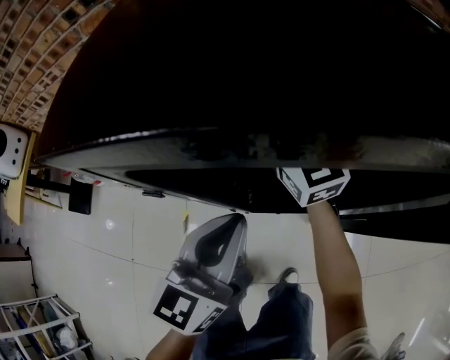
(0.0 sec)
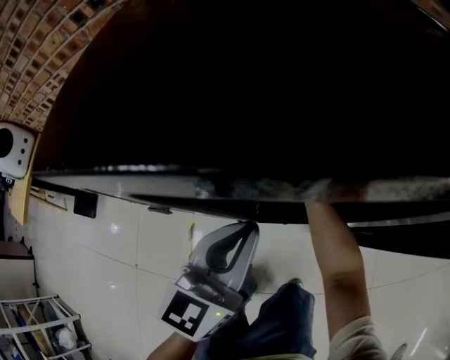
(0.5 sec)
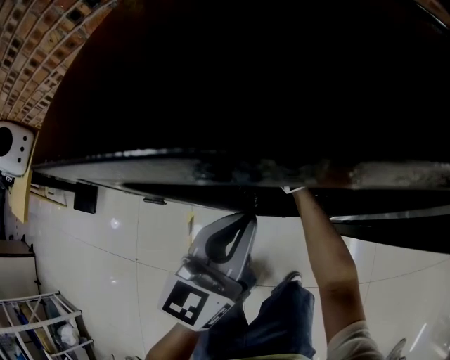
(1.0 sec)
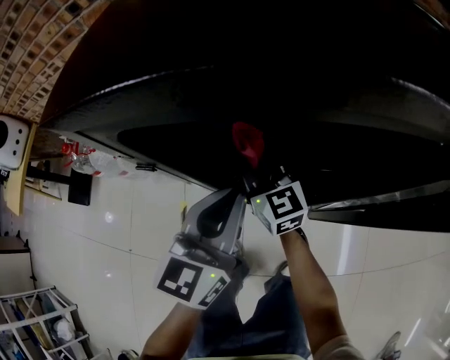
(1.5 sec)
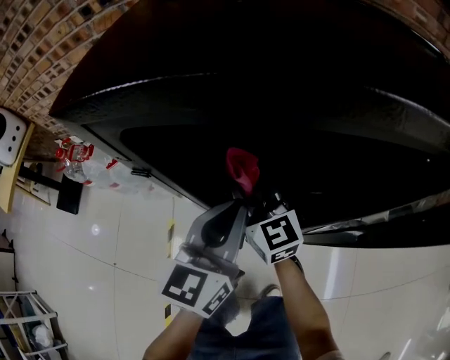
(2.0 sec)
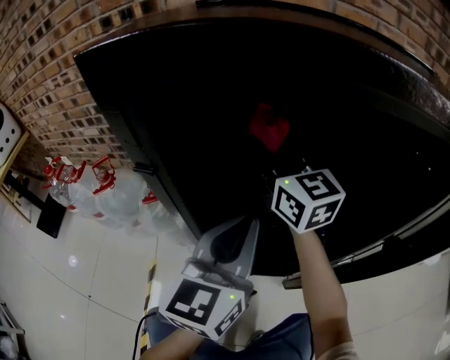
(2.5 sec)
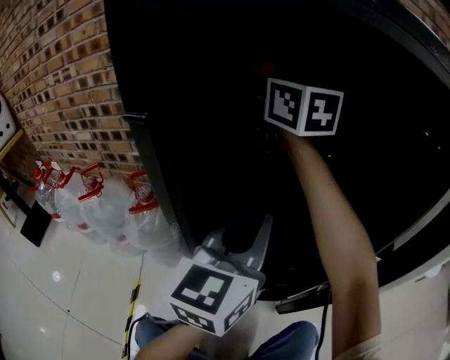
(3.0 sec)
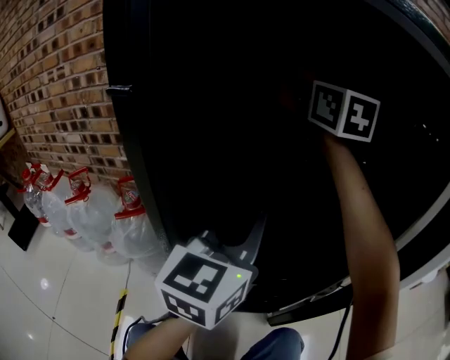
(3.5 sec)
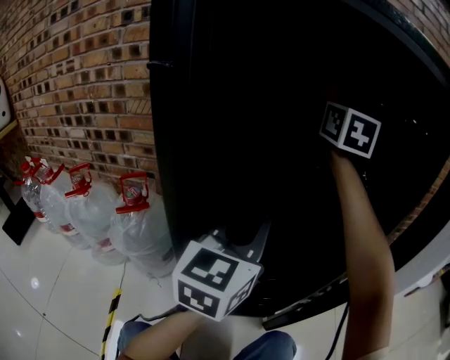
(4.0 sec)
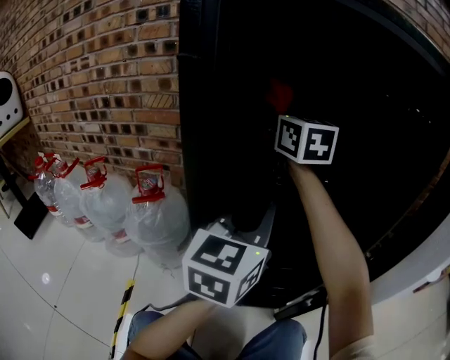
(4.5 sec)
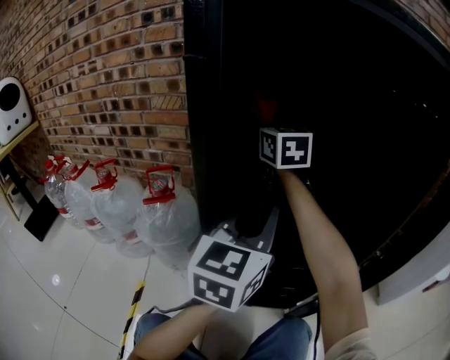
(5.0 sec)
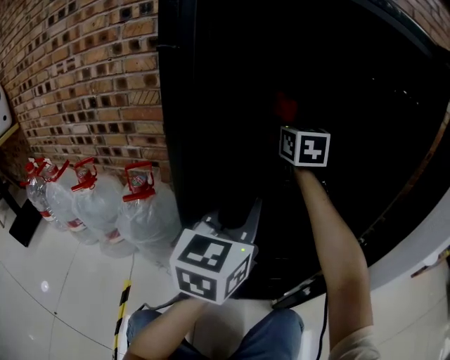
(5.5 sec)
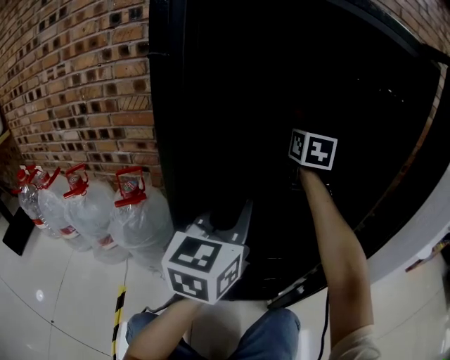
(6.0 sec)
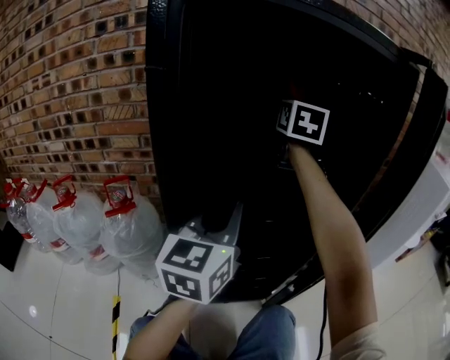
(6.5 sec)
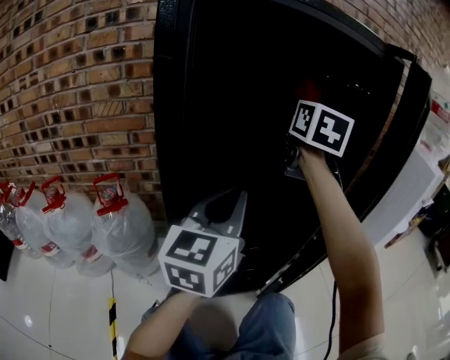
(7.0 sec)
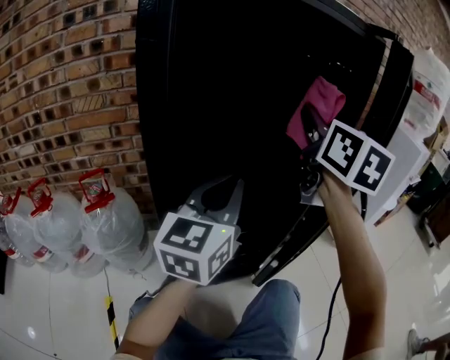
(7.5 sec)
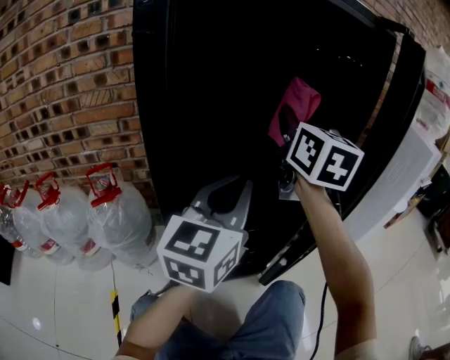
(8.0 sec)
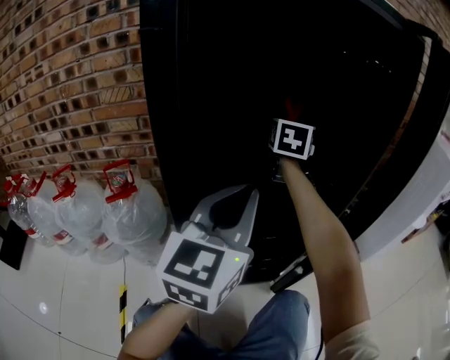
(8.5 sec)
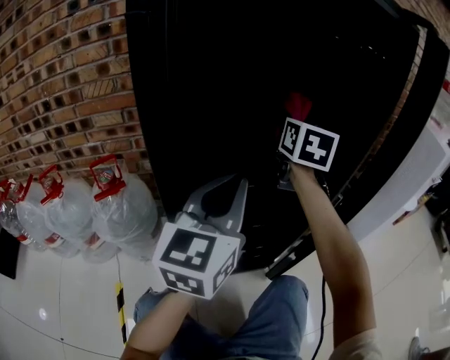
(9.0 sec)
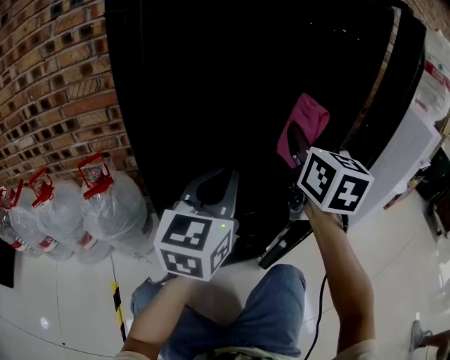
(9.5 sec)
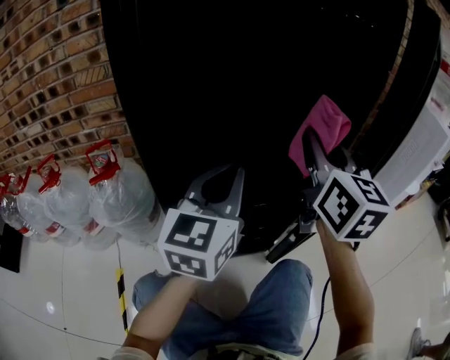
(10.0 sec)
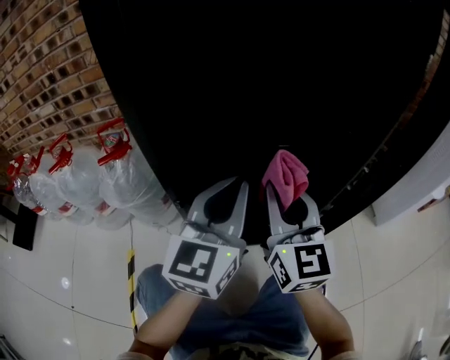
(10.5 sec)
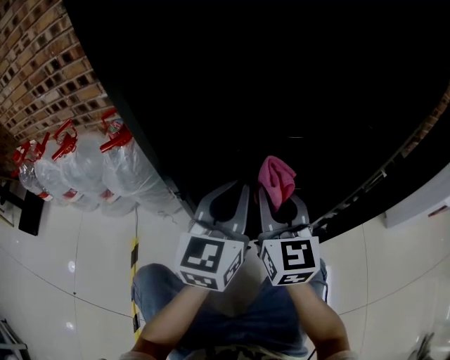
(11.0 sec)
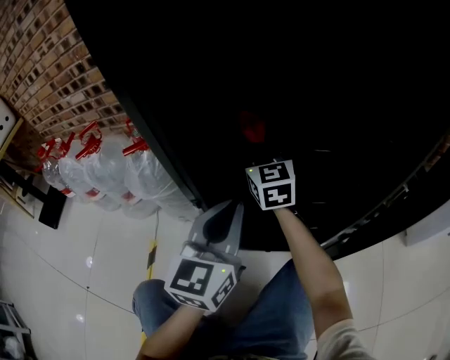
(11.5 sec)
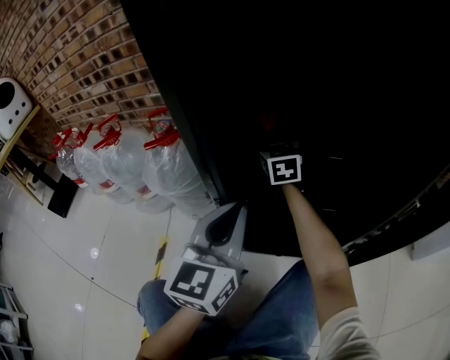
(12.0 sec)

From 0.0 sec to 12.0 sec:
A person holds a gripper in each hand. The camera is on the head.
From 0.0 sec to 2.0 sec: The right gripper travels backward and downward by about 15 cm.
From 2.0 sec to 4.0 sec: The left gripper heads downward, to the right and forward, covering some 10 cm, while the right gripper moves forward, to the right and upward, roughly 30 cm, and swivels about 40 degrees.
From 4.0 sec to 6.0 sec: The right gripper is displaced downward by roughly 15 cm, and travels to the left and back again, approximately 20 cm each way.
From 6.0 sec to 8.0 sec: The left gripper ends up approximately 5 cm from where it was. The right gripper moves backward, roughly 15 cm.
From 8.0 sec to 10.0 sec: The right gripper goes some 10 cm downward and to the right, and moves approximately 15 cm forward and comes back. The left gripper moves downward, some 5 cm.
From 10.0 sec to 12.0 sec: The right gripper moves approximately 40 cm, and changes its angle by some 30 degrees. The left gripper travels downward by approximately 10 cm, and turns by approximately 20 degrees.

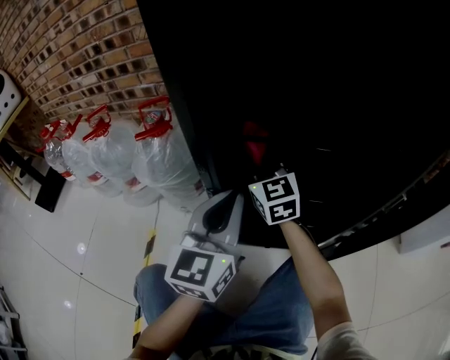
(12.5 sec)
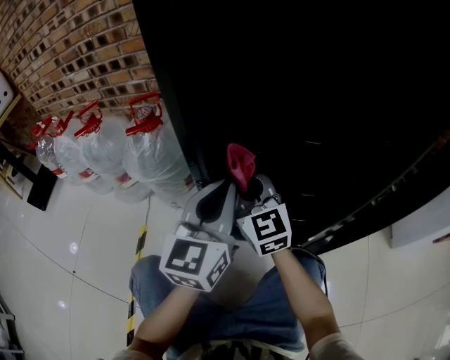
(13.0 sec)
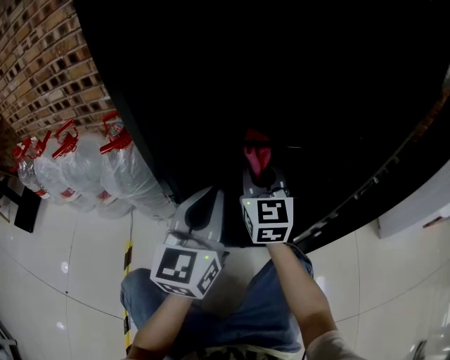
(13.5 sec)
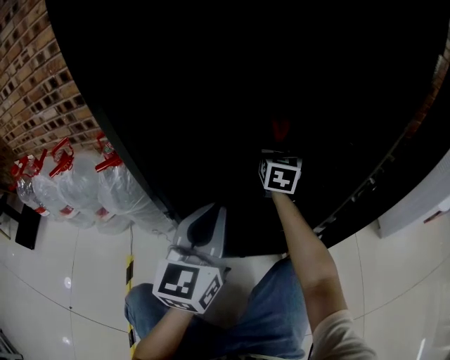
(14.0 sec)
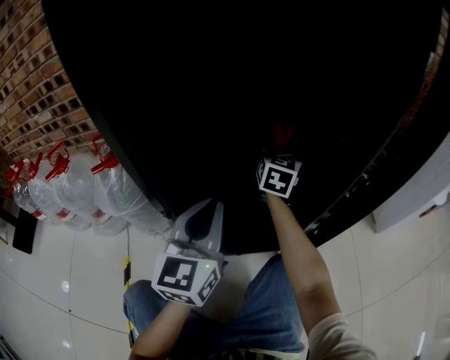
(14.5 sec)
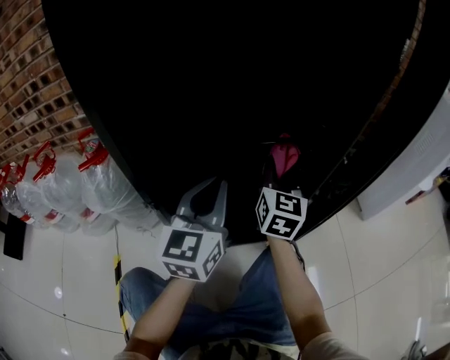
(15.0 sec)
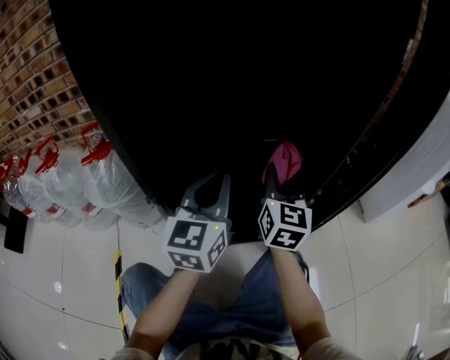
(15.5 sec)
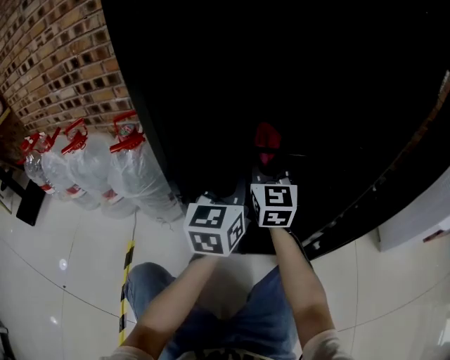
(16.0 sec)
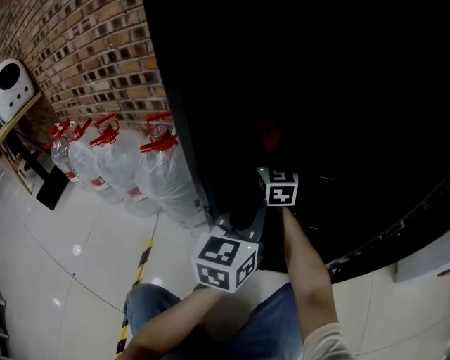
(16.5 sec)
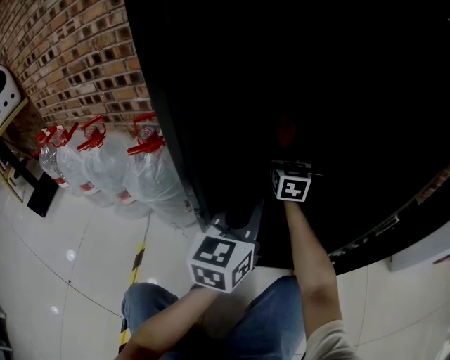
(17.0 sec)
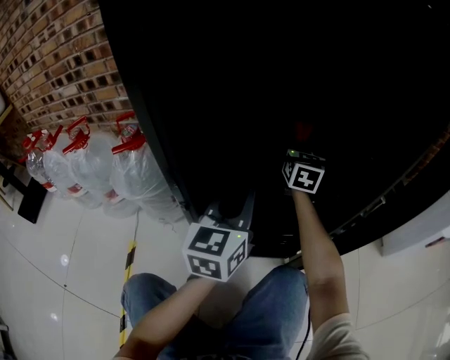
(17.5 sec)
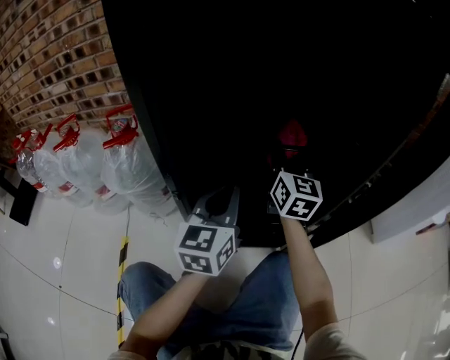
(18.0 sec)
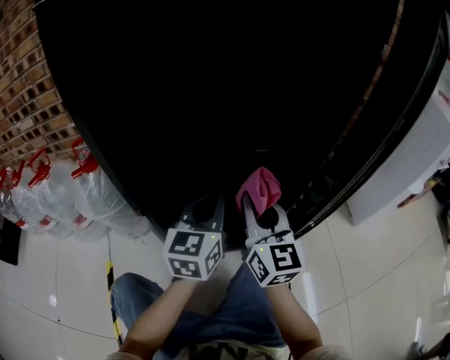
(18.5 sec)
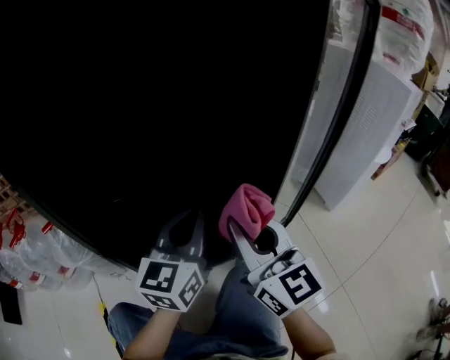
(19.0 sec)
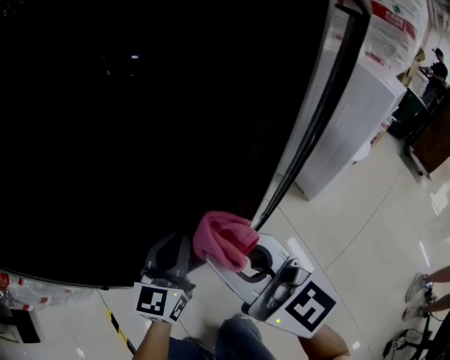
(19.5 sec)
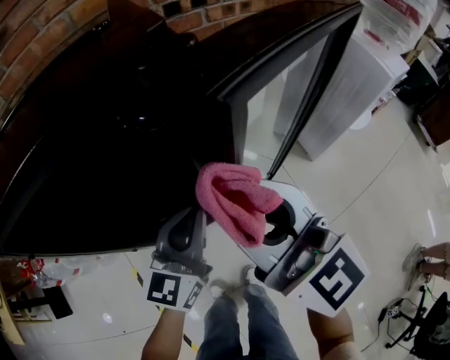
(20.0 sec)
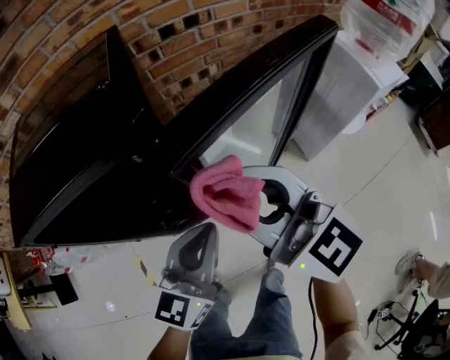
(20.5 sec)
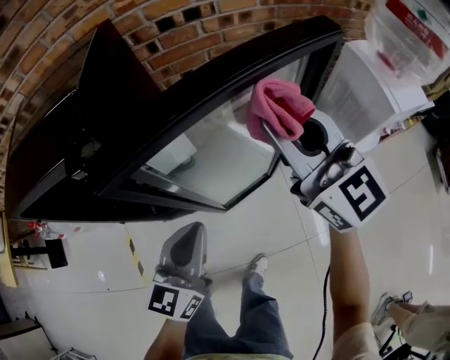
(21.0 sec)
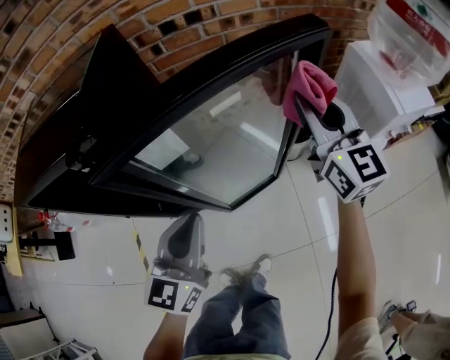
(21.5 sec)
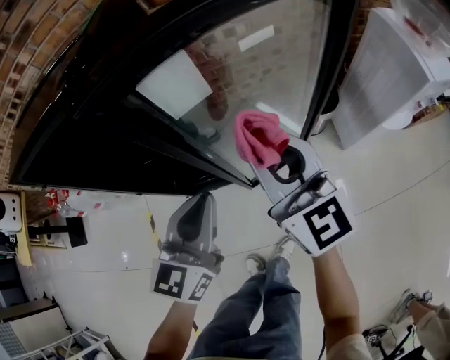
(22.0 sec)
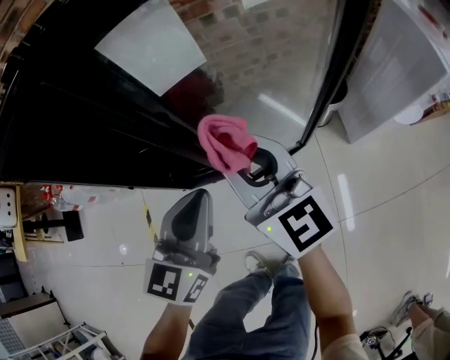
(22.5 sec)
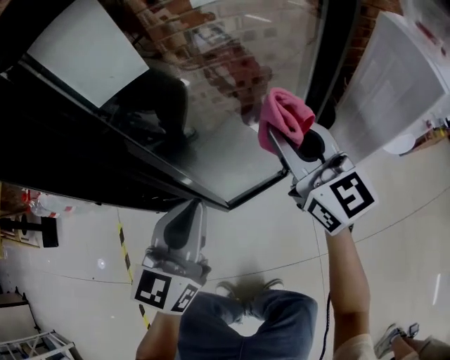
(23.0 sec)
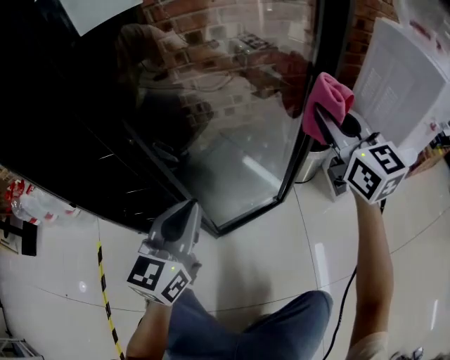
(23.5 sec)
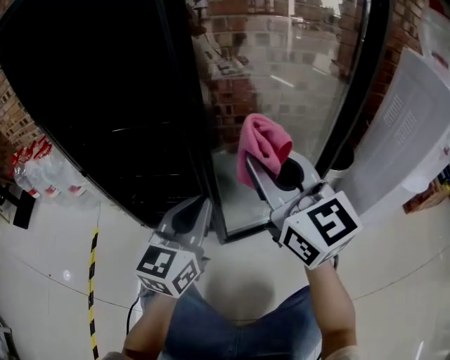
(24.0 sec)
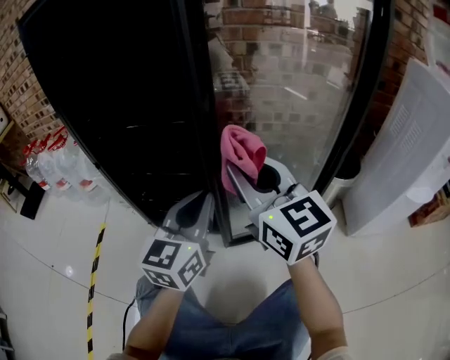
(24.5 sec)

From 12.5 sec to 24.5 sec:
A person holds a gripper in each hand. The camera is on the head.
From 12.5 sec to 14.5 sec: The left gripper ends up approximately 5 cm from where it was, while the right gripper shifts by roughly 25 cm, and rotates roughly 50 degrees.
From 14.5 sec to 16.5 sec: The right gripper moves to the left, approximately 20 cm, and swivels roughly 40 degrees.
From 16.5 sec to 18.5 sec: The left gripper moves to the right, roughly 10 cm, while the right gripper shifts some 30 cm backward and to the right.
From 18.5 sec to 20.5 sec: The right gripper is displaced upward by approximately 40 cm, and changes its angle by roughly 20 degrees, while the left gripper moves upward and to the right, approximately 40 cm, and turns by some 20 degrees.
From 20.5 sec to 22.5 sec: The left gripper travels downward by approximately 10 cm, and swivels approximately 20 degrees. The right gripper is displaced downward by approximately 15 cm, and moves approximately 25 cm to the right and comes back.
From 22.5 sec to 24.5 sec: Both grippers travel together downward, roughly 20 cm. The right gripper travels to the right and back again, approximately 25 cm each way.

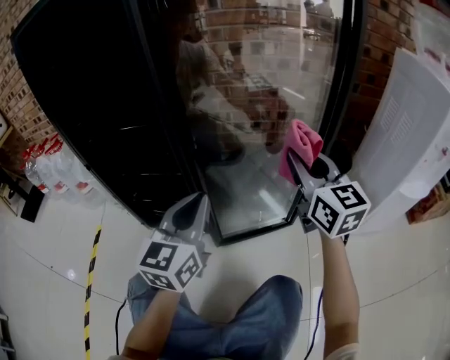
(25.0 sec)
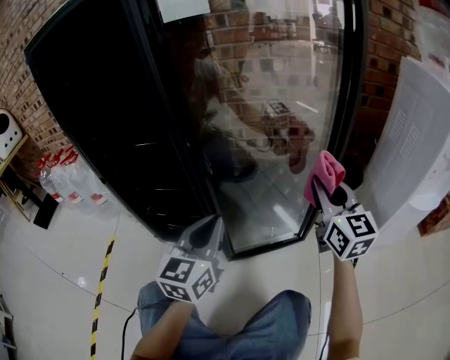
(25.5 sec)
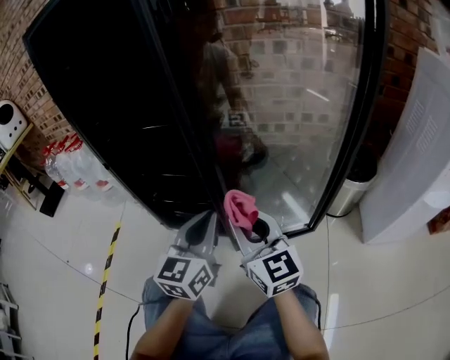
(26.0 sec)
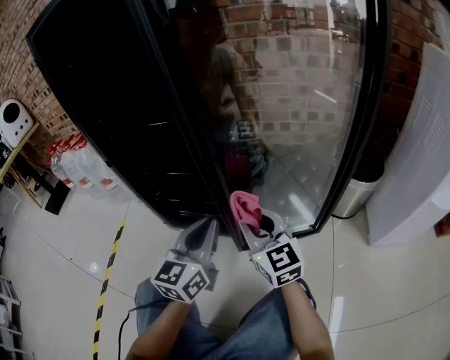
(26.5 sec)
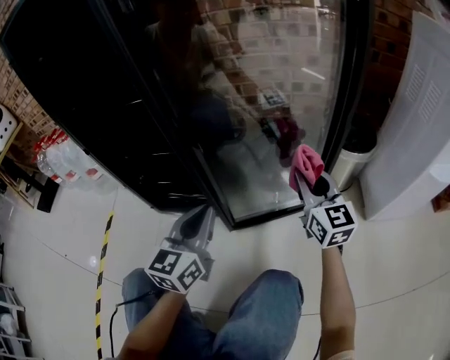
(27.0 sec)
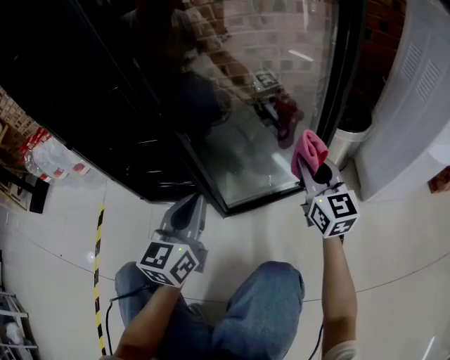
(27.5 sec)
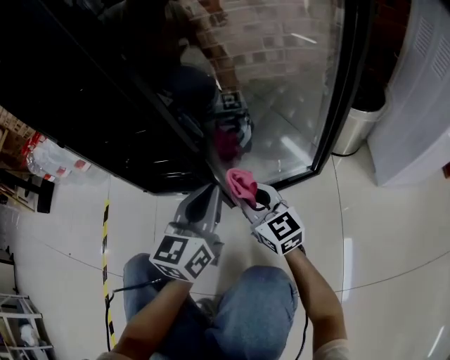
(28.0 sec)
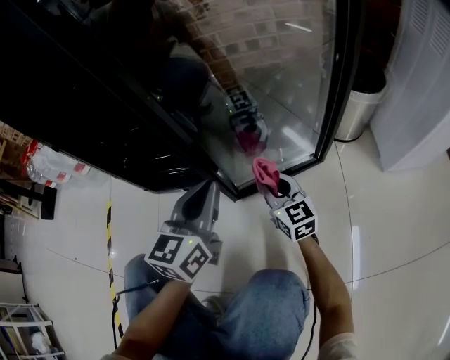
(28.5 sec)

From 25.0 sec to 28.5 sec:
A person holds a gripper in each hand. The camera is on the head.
From 25.0 sec to 27.0 sec: The left gripper is displaced downward by about 10 cm. Meanwhile the right gripper swings left and right, roughly 25 cm each way, with 2 reversals.
From 27.0 sec to 28.5 sec: The right gripper shifts about 25 cm downward and to the left. The left gripper is displaced downward by about 5 cm.
